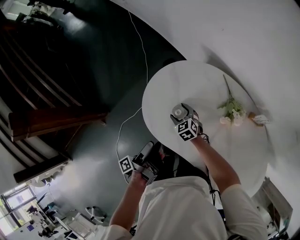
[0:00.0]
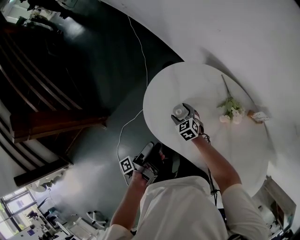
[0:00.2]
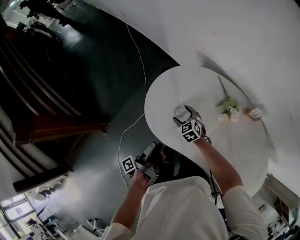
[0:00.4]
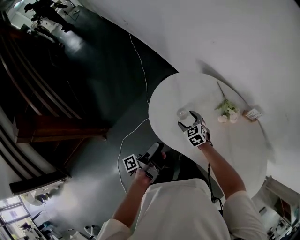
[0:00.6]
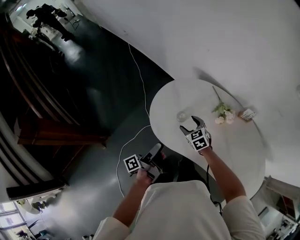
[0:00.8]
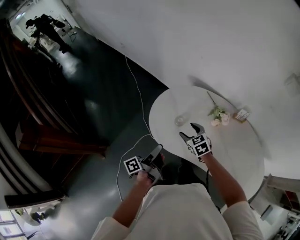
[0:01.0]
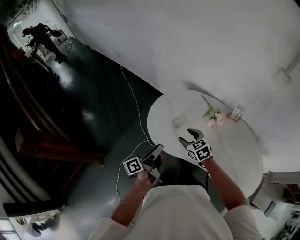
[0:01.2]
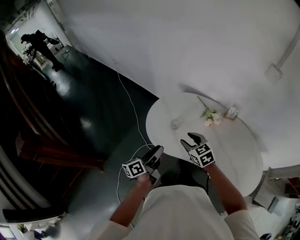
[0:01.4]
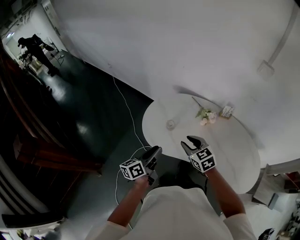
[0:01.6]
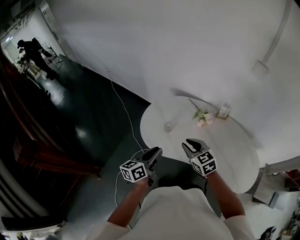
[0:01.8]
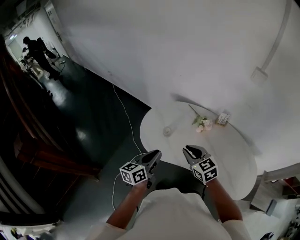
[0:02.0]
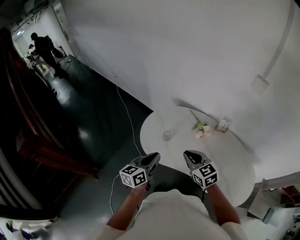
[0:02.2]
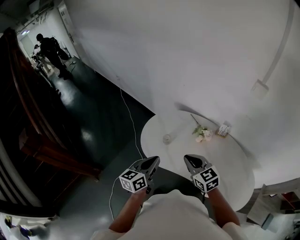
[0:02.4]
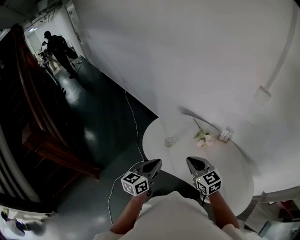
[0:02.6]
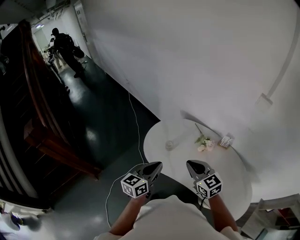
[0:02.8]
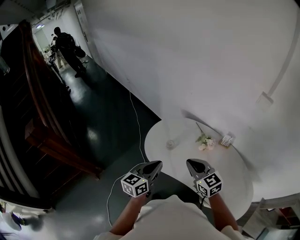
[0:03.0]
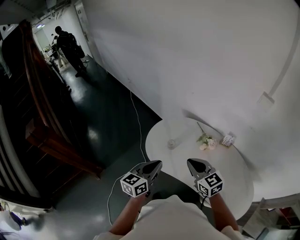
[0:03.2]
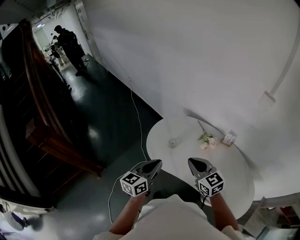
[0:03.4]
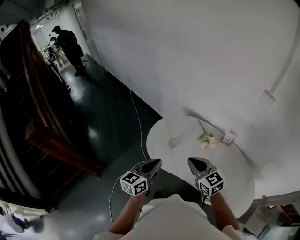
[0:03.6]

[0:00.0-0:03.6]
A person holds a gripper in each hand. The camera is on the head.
0.0 to 1.8 s: The right gripper heads upward, covering some 35 cm, swivels approximately 30 degrees, and closes up.
1.8 to 3.6 s: The right gripper goes some 10 cm upward.

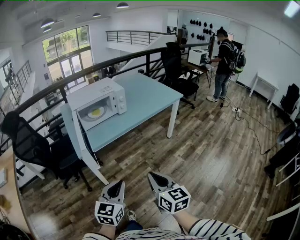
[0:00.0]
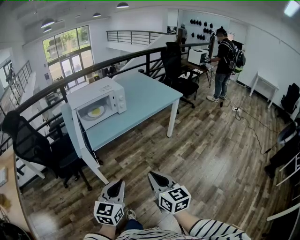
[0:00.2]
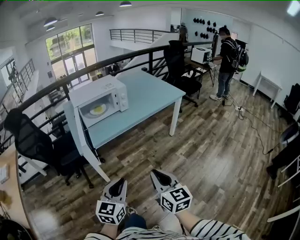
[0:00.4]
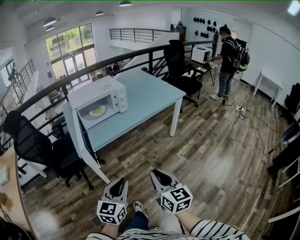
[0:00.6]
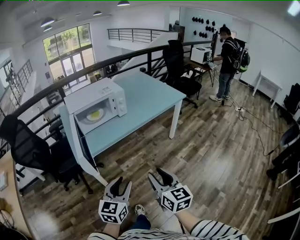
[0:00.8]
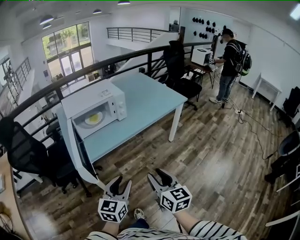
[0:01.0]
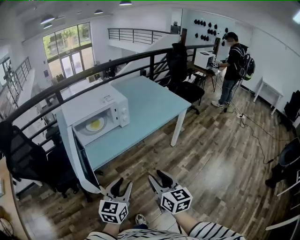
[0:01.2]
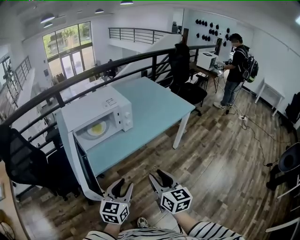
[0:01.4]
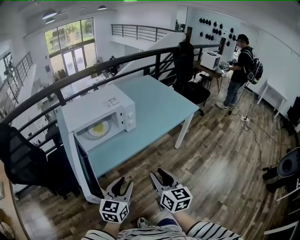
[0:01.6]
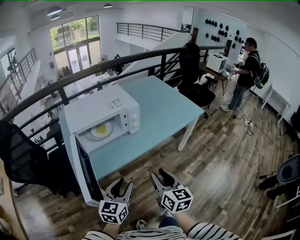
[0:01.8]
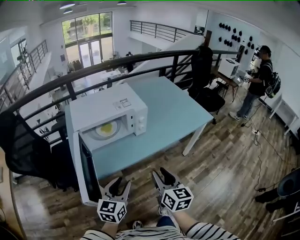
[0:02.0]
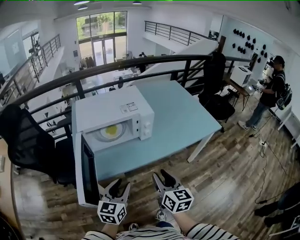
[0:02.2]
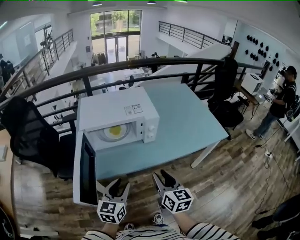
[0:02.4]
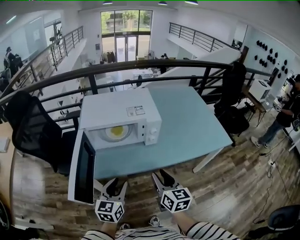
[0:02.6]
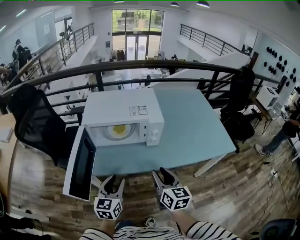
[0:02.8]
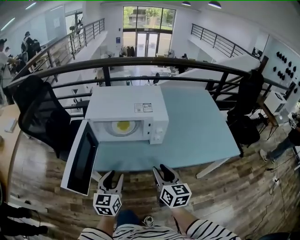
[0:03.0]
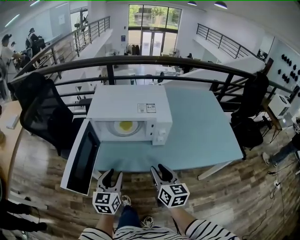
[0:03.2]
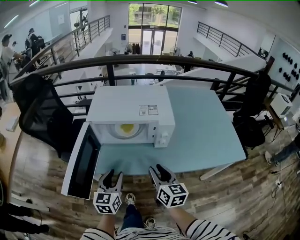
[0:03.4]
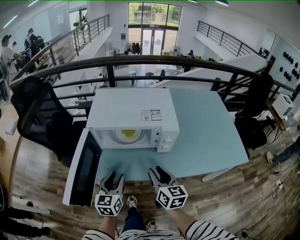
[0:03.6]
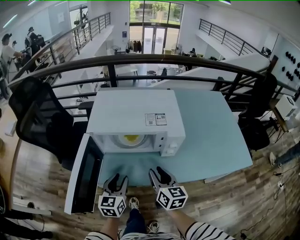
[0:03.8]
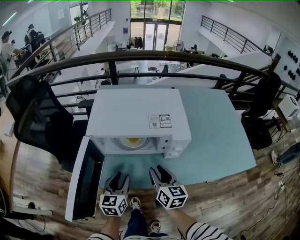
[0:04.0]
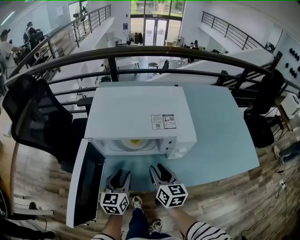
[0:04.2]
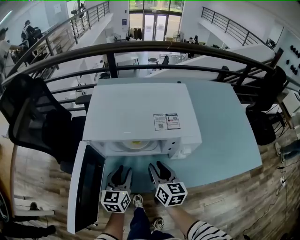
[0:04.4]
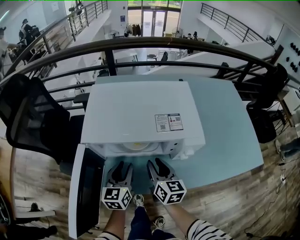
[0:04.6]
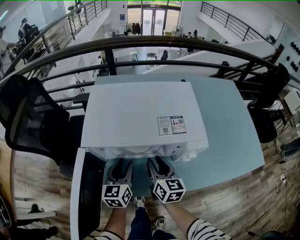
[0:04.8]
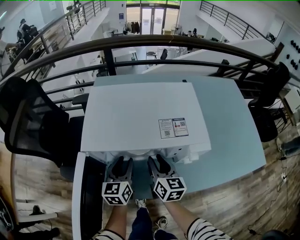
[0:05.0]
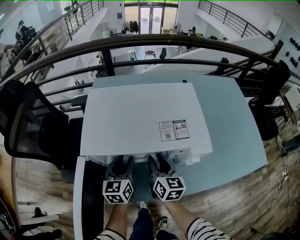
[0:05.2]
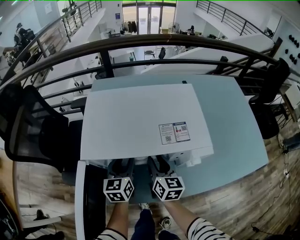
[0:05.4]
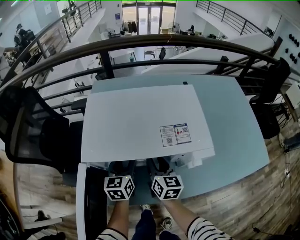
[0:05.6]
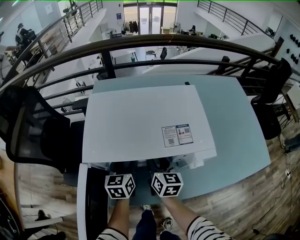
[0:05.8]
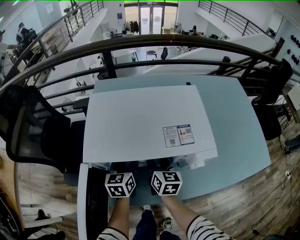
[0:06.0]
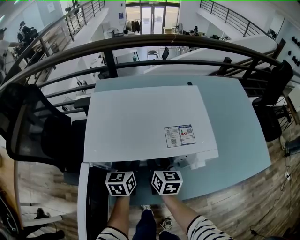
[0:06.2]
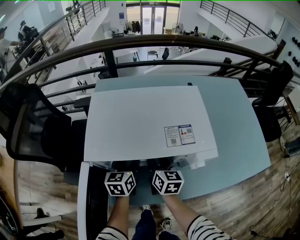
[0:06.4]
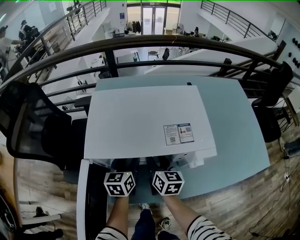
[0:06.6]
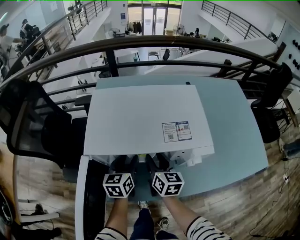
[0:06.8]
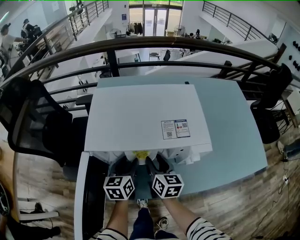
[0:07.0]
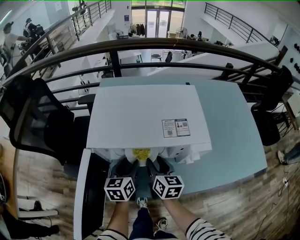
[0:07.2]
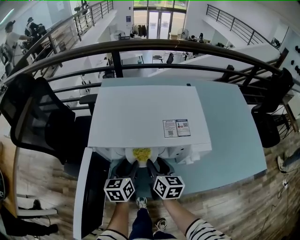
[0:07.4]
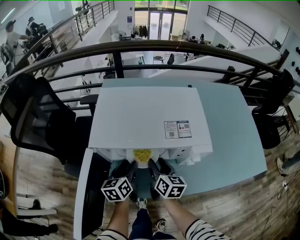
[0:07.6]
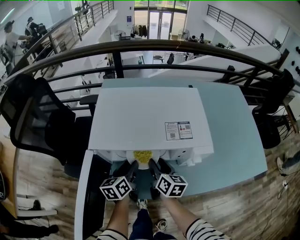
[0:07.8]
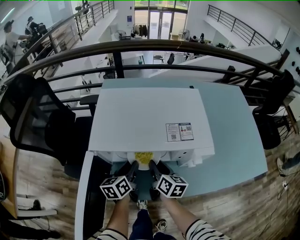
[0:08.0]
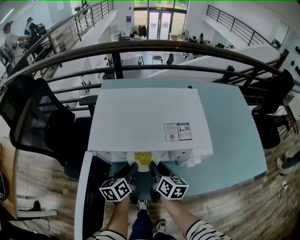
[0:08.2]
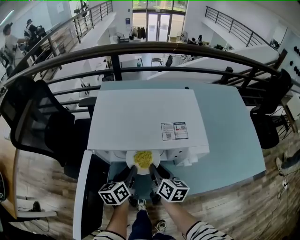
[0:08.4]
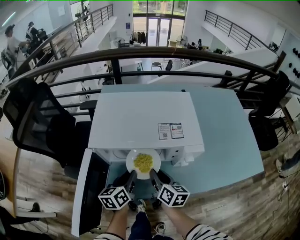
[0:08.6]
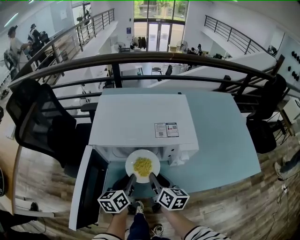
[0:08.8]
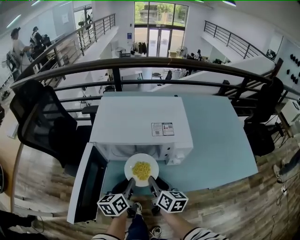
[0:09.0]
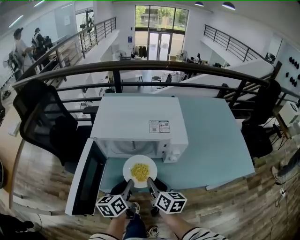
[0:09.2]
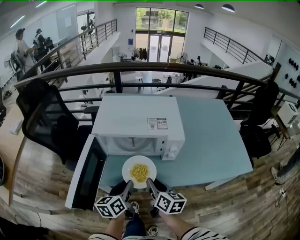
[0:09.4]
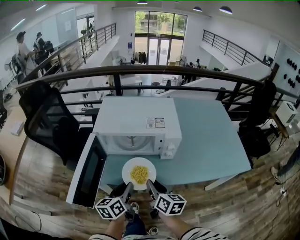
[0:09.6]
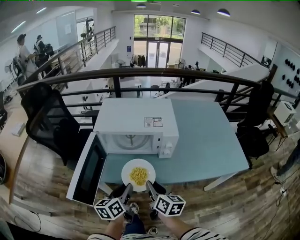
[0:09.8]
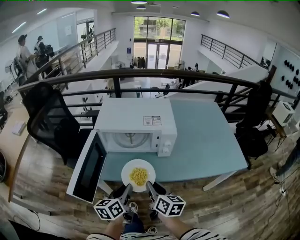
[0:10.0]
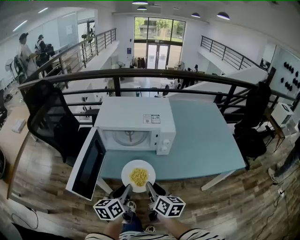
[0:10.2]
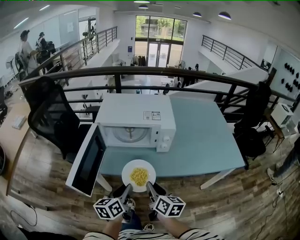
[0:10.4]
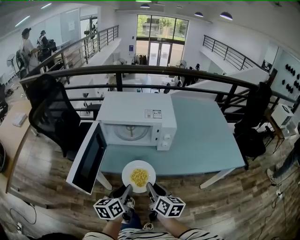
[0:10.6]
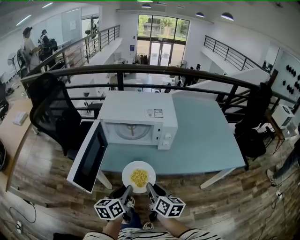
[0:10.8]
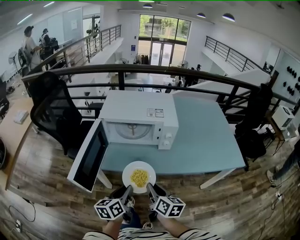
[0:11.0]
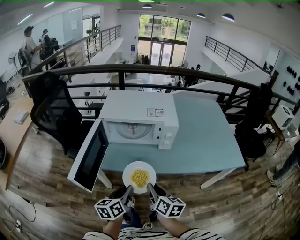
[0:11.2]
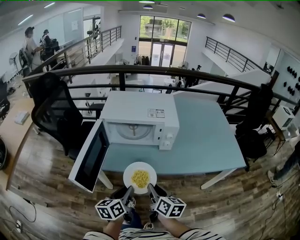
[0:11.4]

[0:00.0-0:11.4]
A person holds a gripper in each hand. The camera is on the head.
0.0 to 1.4 s: Both grippers move forward, about 20 cm. The left gripper opens. The right gripper opens its fingers.
1.4 to 2.8 s: The right gripper moves roughly 25 cm, and turns by approximately 20 degrees; the left gripper ends up roughly 15 cm from where it was, and swivels approximately 40 degrees.
2.8 to 4.2 s: The grippers both shift forward and downward by about 20 cm.
4.2 to 5.6 s: The two grippers go approximately 15 cm forward.
5.6 to 7.2 s: The left gripper goes approximately 5 cm backward.
7.2 to 8.6 s: The left gripper moves about 5 cm, and closes its fingers. The right gripper ends up approximately 5 cm from where it was.
8.6 to 10.0 s: Both grippers travel together backward, approximately 20 cm.
10.0 to 11.4 s: Both grippers travel together backward, roughly 5 cm.

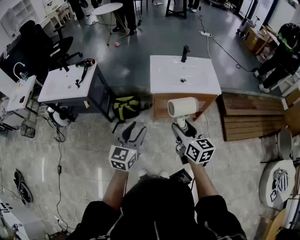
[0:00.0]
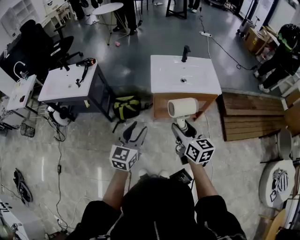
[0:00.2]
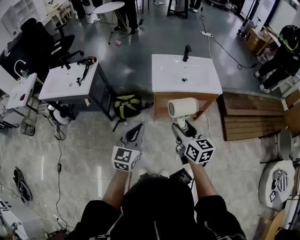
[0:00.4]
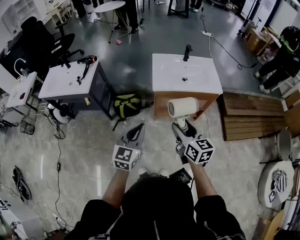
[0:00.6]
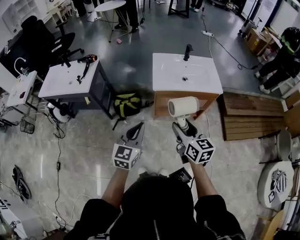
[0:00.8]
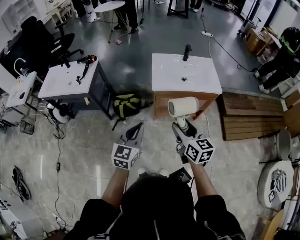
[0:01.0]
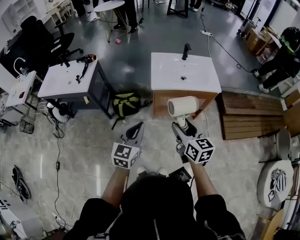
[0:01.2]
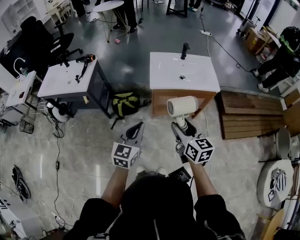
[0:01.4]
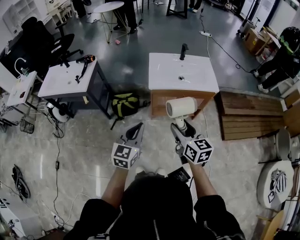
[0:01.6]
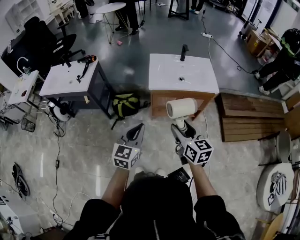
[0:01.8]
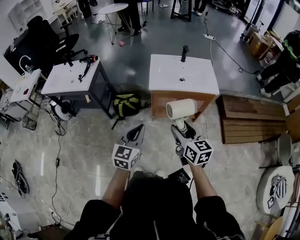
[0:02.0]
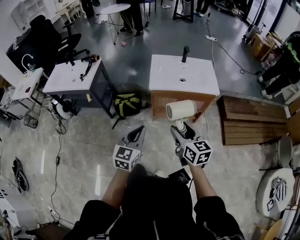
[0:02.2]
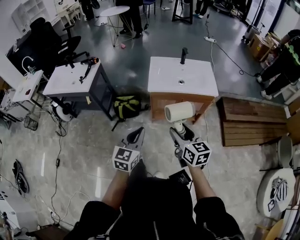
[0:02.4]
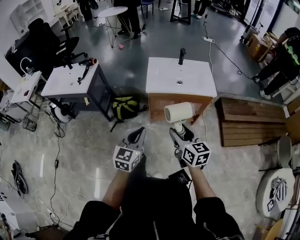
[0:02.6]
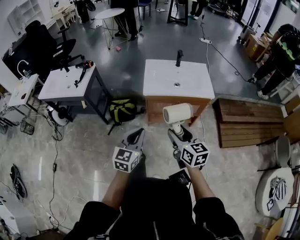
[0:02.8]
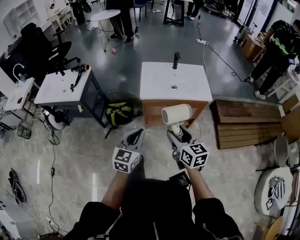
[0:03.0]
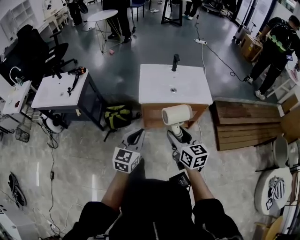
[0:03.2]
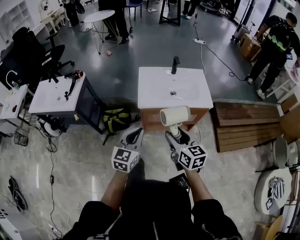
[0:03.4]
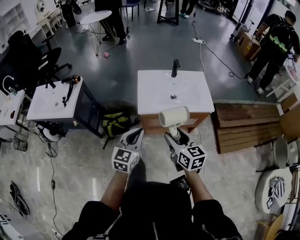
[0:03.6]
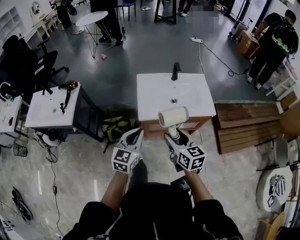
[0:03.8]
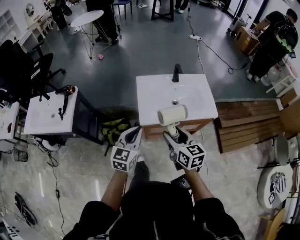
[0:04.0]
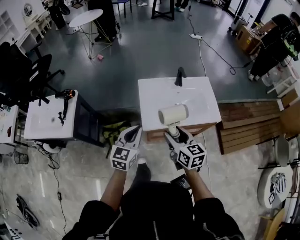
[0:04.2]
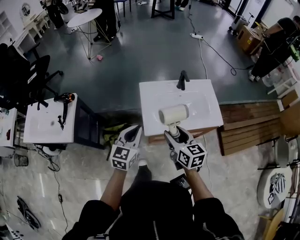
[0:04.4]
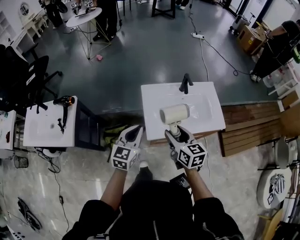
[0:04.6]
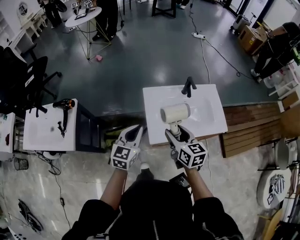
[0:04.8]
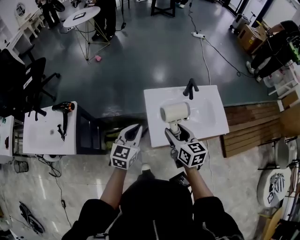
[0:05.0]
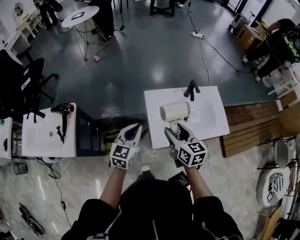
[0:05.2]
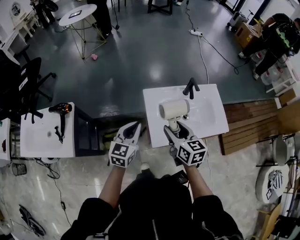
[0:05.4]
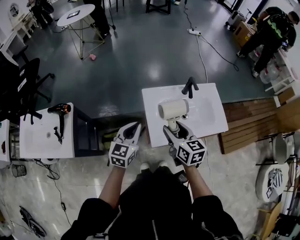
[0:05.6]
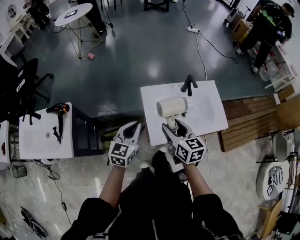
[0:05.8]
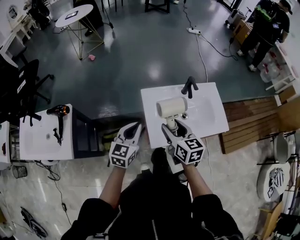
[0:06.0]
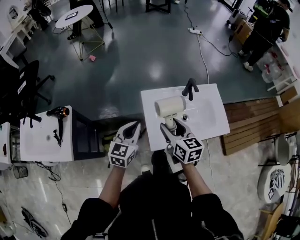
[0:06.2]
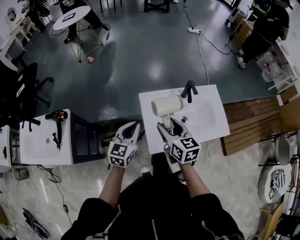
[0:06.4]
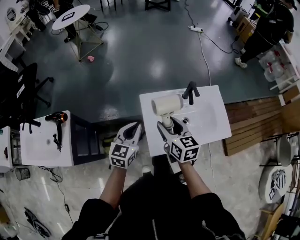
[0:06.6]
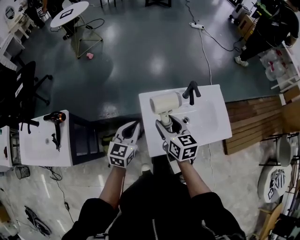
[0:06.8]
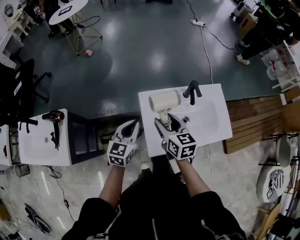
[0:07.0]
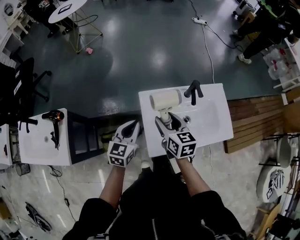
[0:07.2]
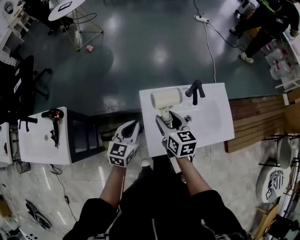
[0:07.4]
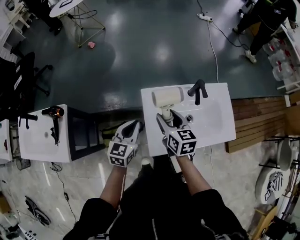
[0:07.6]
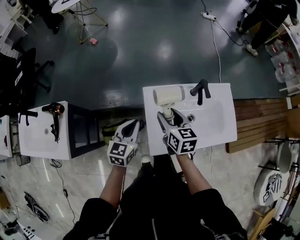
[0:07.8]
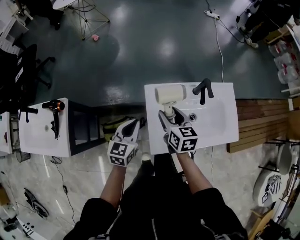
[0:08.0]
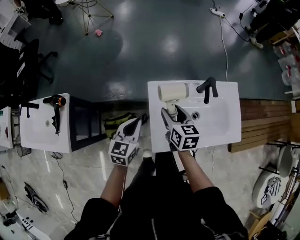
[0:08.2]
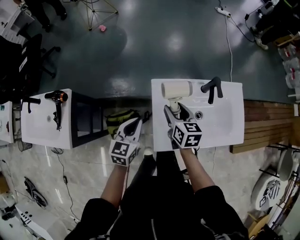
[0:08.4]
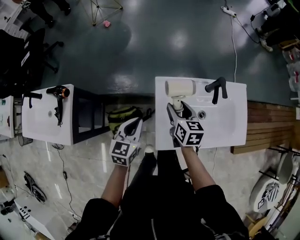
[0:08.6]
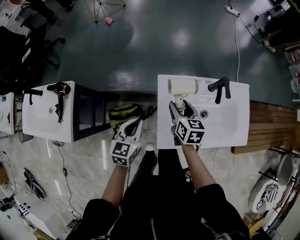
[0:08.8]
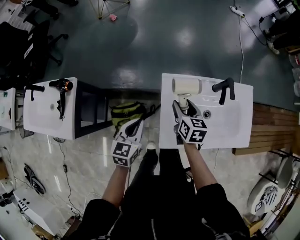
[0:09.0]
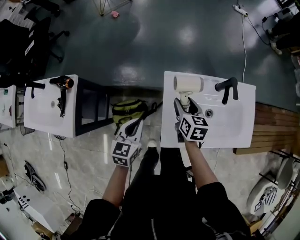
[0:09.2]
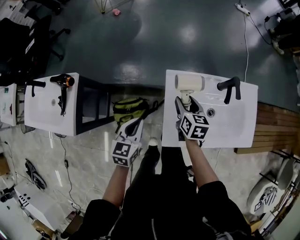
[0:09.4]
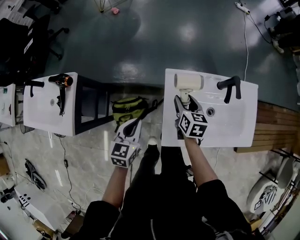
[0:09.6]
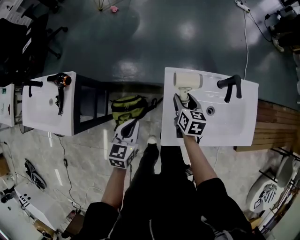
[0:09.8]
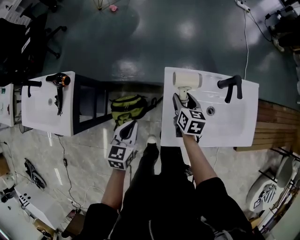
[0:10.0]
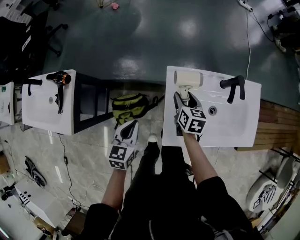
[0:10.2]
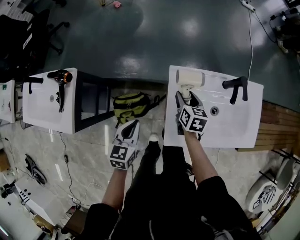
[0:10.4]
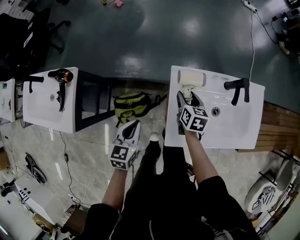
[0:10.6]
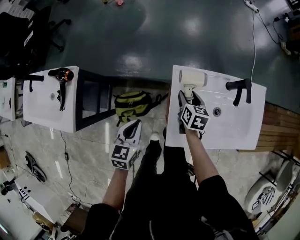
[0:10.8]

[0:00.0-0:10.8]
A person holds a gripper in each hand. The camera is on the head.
0.0 to 1.6 s: The left gripper closes.
1.6 to 3.0 s: The left gripper moves to the right, some 5 cm. Meanwhile the right gripper ends up about 5 cm from where it was.
3.0 to 4.6 s: The grippers both shift forward by about 35 cm.
4.6 to 6.2 s: Both grippers travel together forward, approximately 10 cm.
6.2 to 7.8 s: The left gripper travels downward and forward by approximately 10 cm. The right gripper travels forward and downward by approximately 10 cm.
7.8 to 9.2 s: The right gripper travels downward by some 10 cm. Meanwhile the left gripper is displaced to the left by roughly 5 cm.
9.2 to 10.8 s: The right gripper shifts about 10 cm downward.
